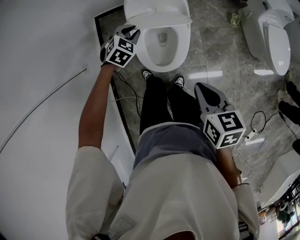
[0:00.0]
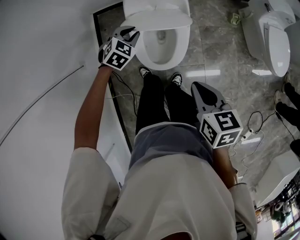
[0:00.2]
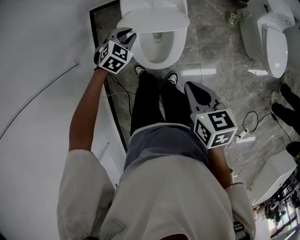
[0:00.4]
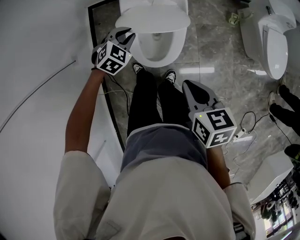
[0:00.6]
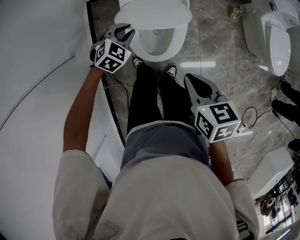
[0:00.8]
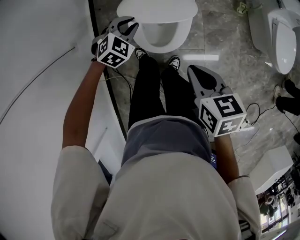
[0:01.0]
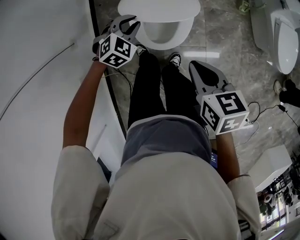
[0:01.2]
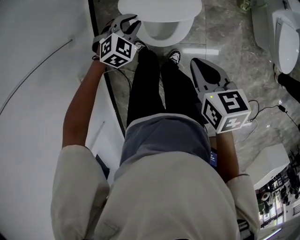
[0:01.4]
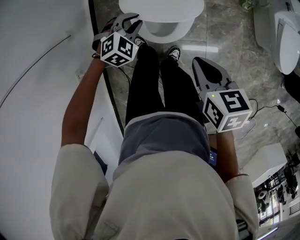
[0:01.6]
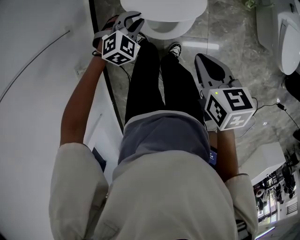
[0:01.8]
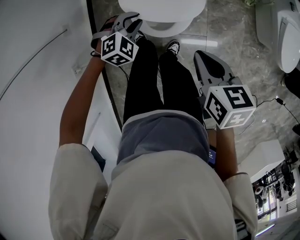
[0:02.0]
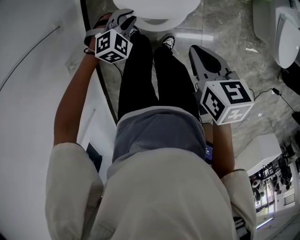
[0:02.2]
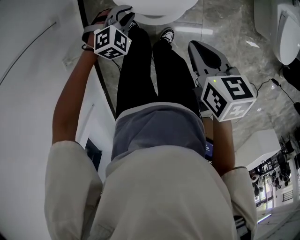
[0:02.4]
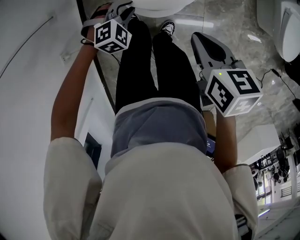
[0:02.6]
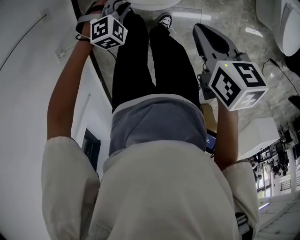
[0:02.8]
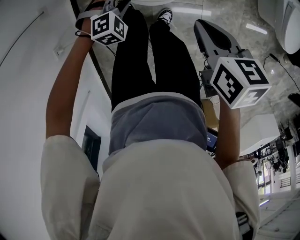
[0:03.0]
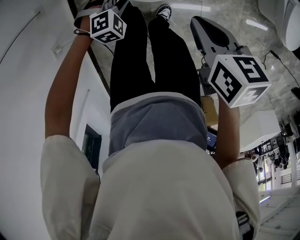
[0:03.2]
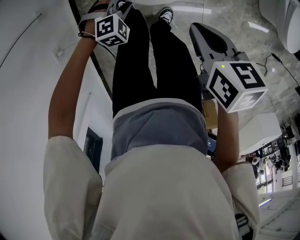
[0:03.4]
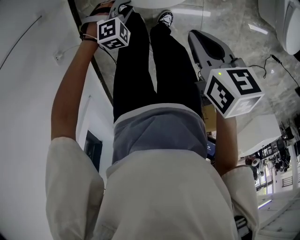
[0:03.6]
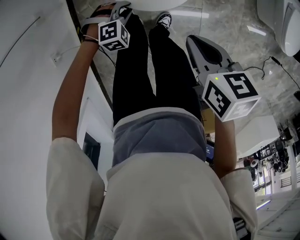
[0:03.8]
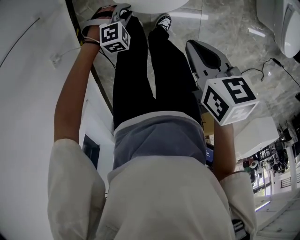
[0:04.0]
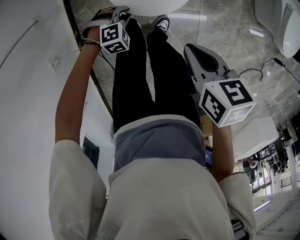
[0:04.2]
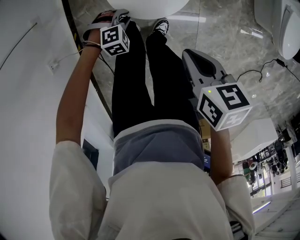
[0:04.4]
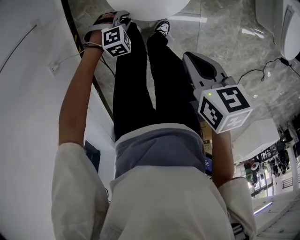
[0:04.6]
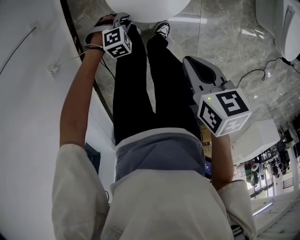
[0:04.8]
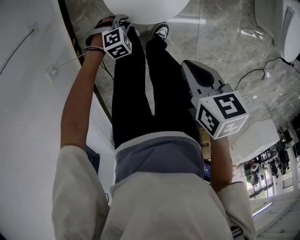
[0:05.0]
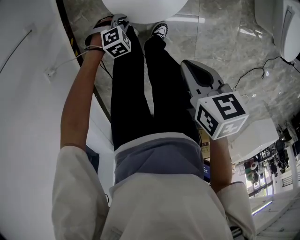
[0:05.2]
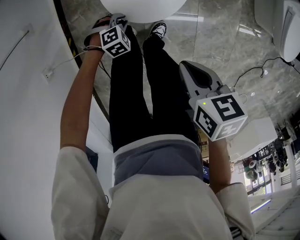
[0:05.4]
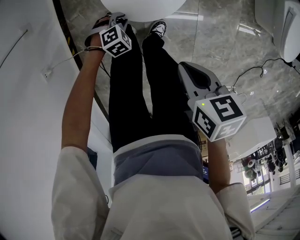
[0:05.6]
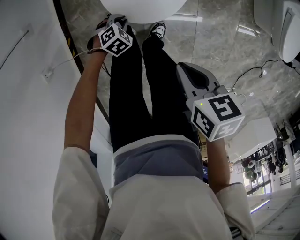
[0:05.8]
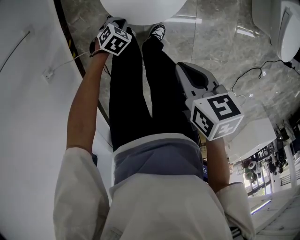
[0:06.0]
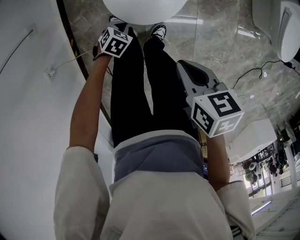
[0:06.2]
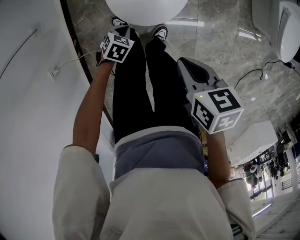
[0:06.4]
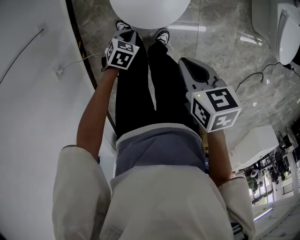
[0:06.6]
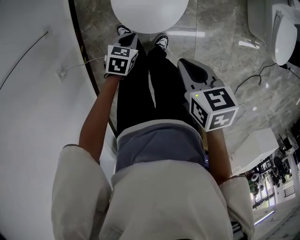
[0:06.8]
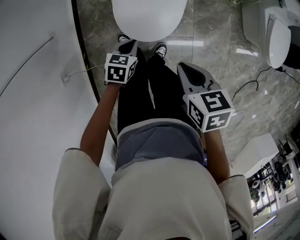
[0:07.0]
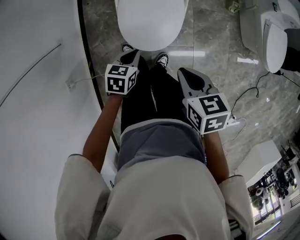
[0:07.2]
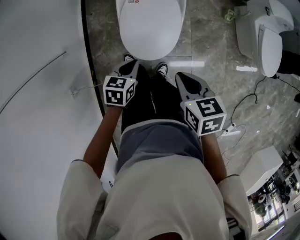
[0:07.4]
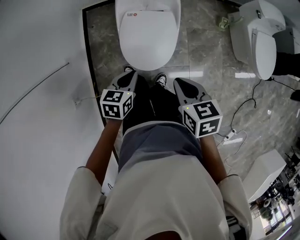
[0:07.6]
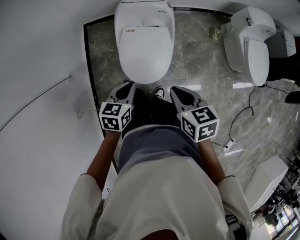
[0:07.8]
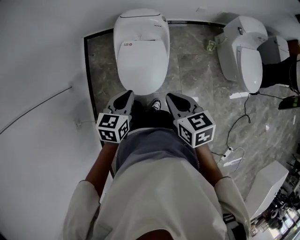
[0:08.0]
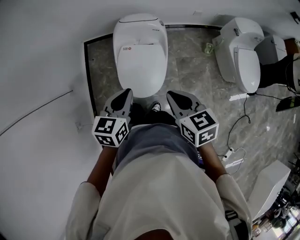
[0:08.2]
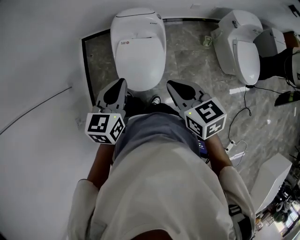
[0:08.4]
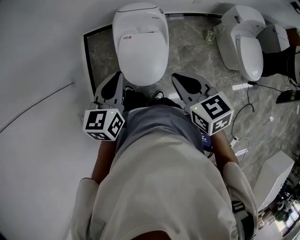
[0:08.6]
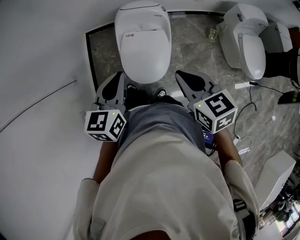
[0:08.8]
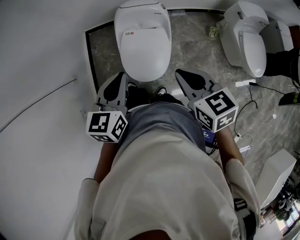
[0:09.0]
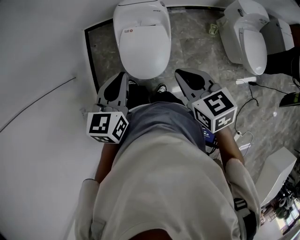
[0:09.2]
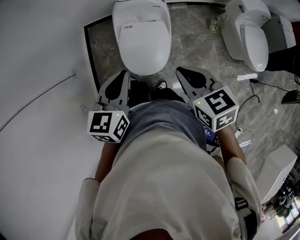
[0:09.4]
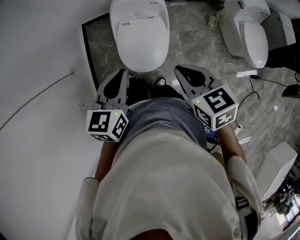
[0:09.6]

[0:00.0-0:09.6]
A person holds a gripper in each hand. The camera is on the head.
0:00.0 to 0:01.6: The right gripper shifts about 5 cm downward; the left gripper goes some 10 cm backward and downward.
0:01.6 to 0:03.2: The right gripper travels downward by roughly 5 cm; the left gripper is displaced downward and backward by roughly 15 cm.
0:03.2 to 0:04.8: The right gripper is displaced downward by approximately 5 cm, while the left gripper is displaced downward by roughly 15 cm.
0:04.8 to 0:06.4: The left gripper twists approximately 50 degrees counterclockwise, seen from behind.
0:06.4 to 0:08.0: The left gripper goes some 40 cm upward, and tips its fingers upward by some 30 degrees. Meanwhile the right gripper is displaced upward by approximately 20 cm, and turns by roughly 20 degrees.
0:08.0 to 0:09.6: The right gripper moves upward, about 5 cm; the left gripper heads upward, covering about 10 cm.

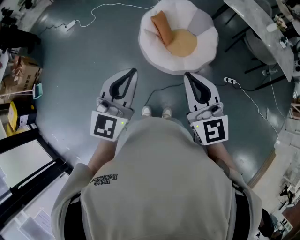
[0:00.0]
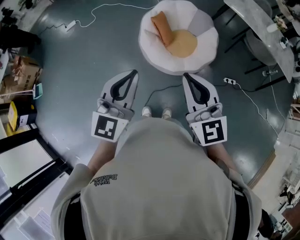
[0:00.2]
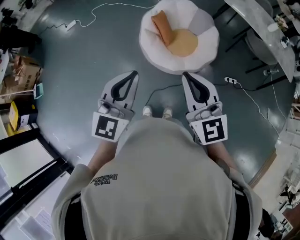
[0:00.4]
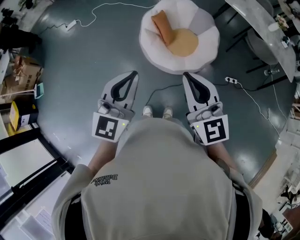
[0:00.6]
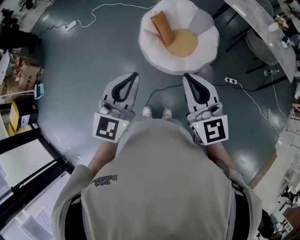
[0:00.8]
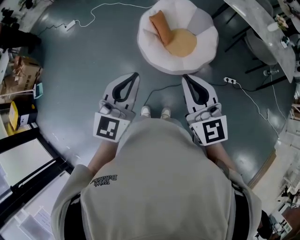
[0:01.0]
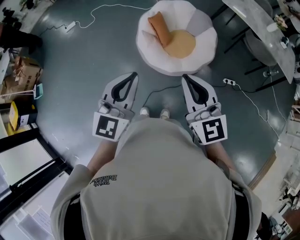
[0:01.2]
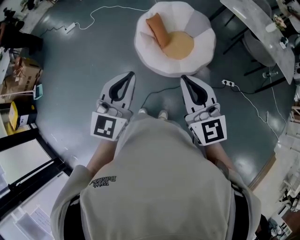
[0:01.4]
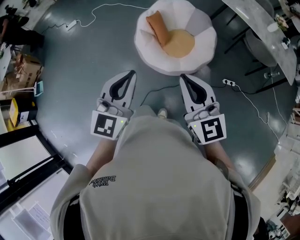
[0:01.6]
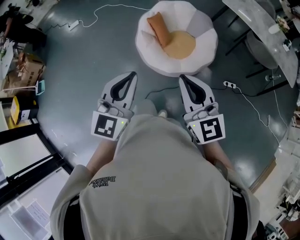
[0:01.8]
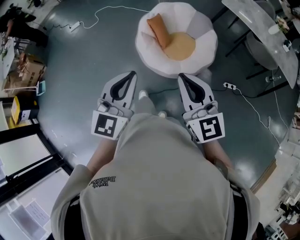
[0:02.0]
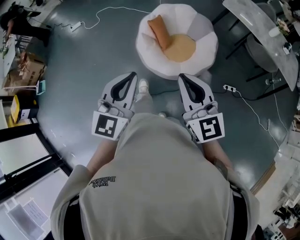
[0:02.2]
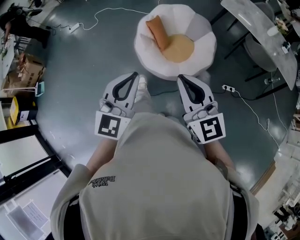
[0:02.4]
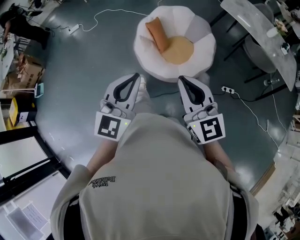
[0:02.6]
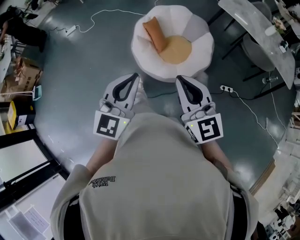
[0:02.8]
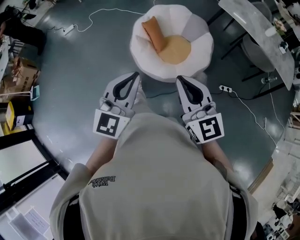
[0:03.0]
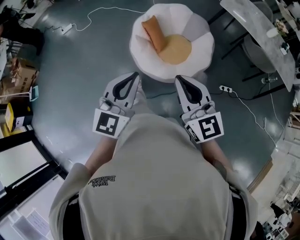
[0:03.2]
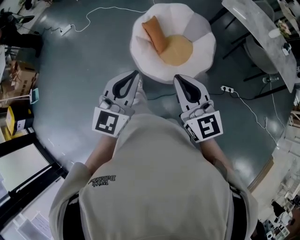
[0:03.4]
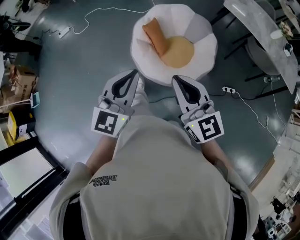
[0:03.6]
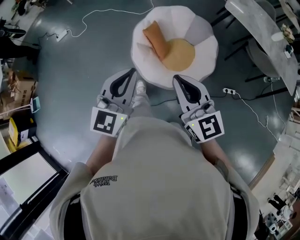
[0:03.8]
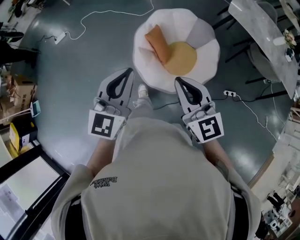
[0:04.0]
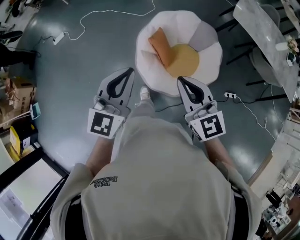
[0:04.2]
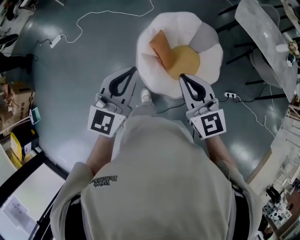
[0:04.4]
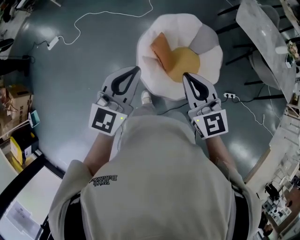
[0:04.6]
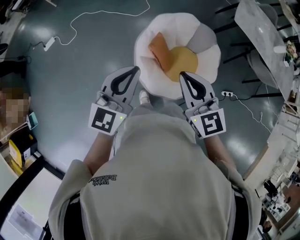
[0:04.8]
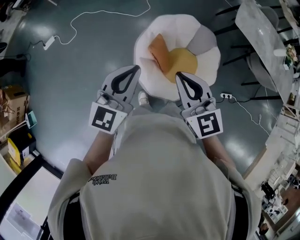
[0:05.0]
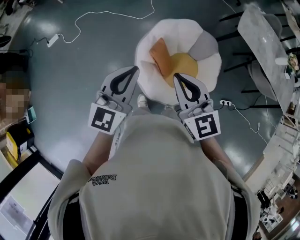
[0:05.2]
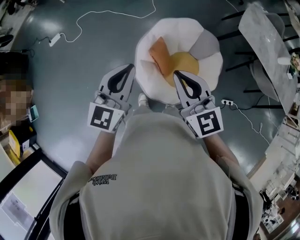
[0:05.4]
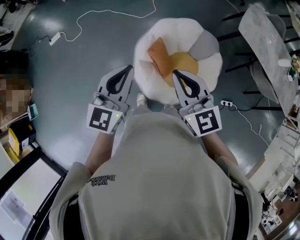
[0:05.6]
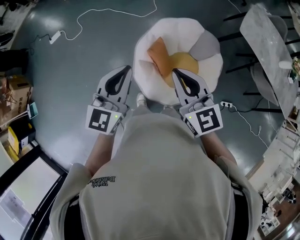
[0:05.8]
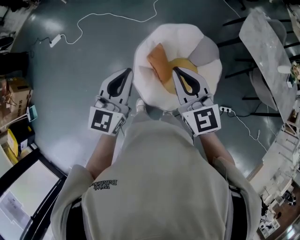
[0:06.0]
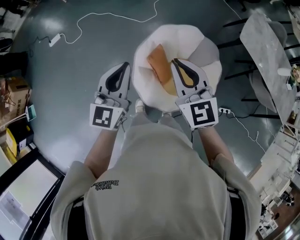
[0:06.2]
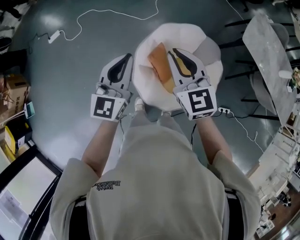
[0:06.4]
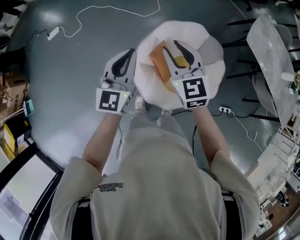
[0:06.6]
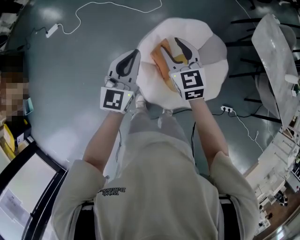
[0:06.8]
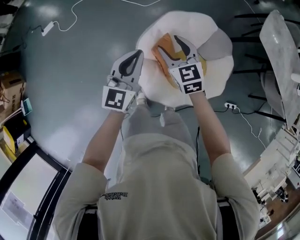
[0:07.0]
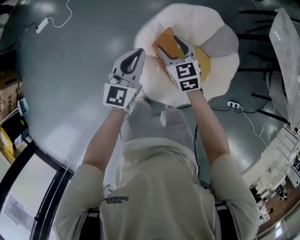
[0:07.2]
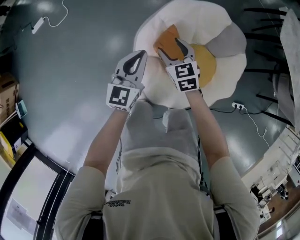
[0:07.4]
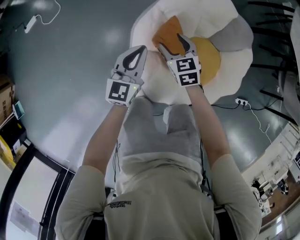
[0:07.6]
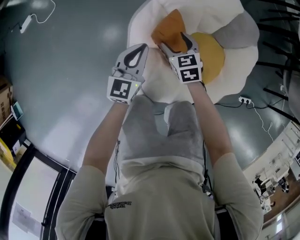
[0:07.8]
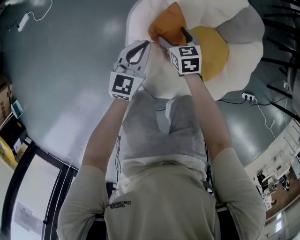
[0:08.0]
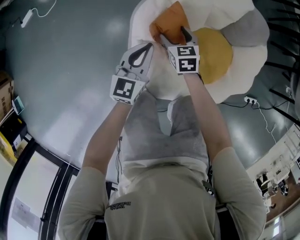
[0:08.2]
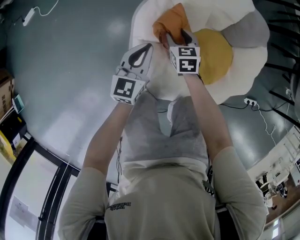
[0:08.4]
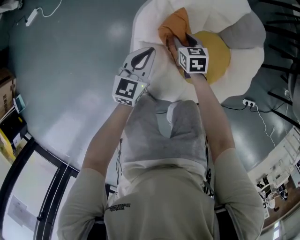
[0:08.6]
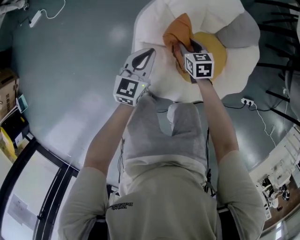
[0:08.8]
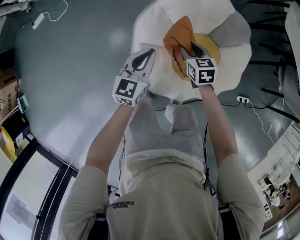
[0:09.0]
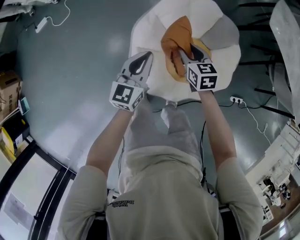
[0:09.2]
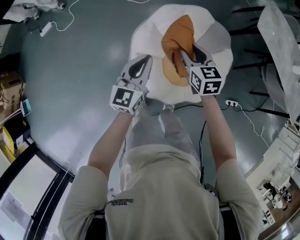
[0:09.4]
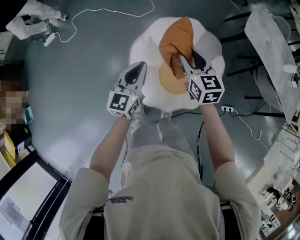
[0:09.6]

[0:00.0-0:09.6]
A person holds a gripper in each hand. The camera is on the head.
0:00.0 to 0:01.6: The two grippers go some 10 cm to the right.
0:01.6 to 0:03.2: Both grippers travel together forward, about 5 cm.
0:03.2 to 0:04.8: The pair of grippers is taken forward and to the left, some 40 cm.
0:04.8 to 0:06.4: The two grippers go roughly 15 cm forward.
0:06.4 to 0:08.0: The grippers both shift downward by roughly 60 cm. The right gripper rotates roughly 40 degrees, and opens. Meanwhile the left gripper turns by some 20 degrees.
0:08.0 to 0:09.6: The grippers both shift upward by some 40 cm. The right gripper changes its angle by about 20 degrees, and closes up.

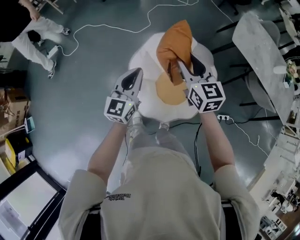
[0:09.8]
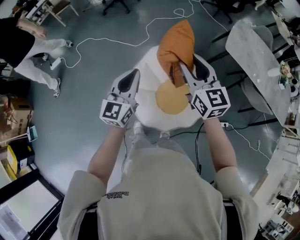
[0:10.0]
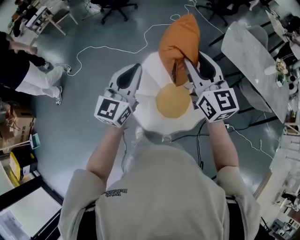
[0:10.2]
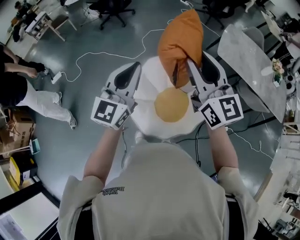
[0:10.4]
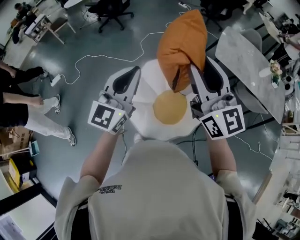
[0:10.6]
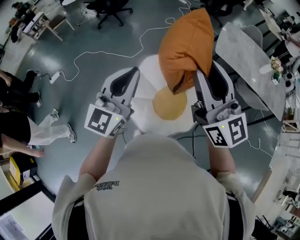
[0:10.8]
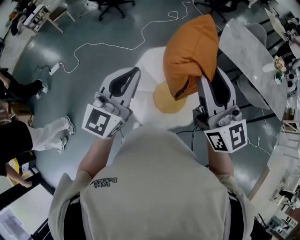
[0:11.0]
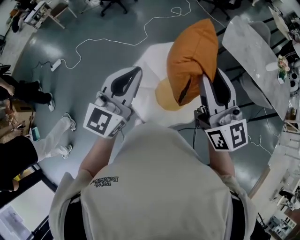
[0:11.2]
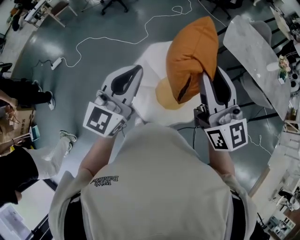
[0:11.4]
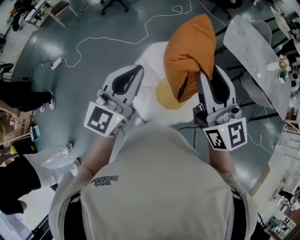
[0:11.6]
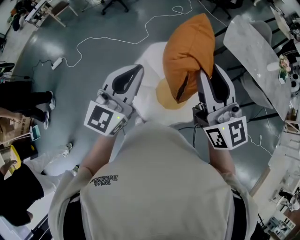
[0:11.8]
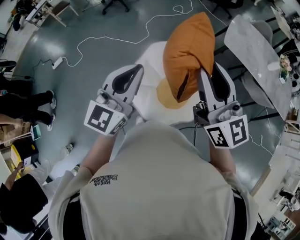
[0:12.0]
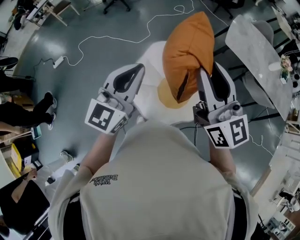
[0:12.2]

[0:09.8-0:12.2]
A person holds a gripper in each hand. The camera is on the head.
0:09.8 to 0:11.0: The left gripper is displaced upward by approximately 20 cm. Meanwhile the right gripper shifts some 25 cm upward and backward, and rotates approximately 30 degrees.
0:11.0 to 0:12.2: The grippers make only small movements.

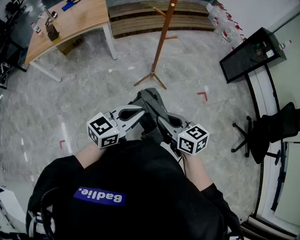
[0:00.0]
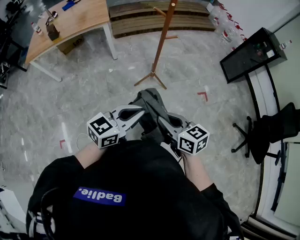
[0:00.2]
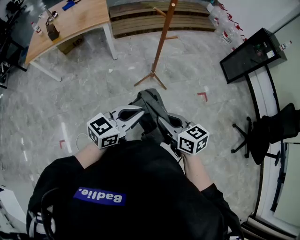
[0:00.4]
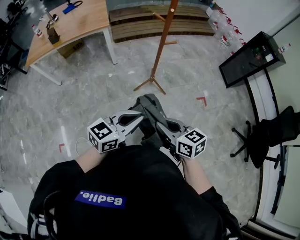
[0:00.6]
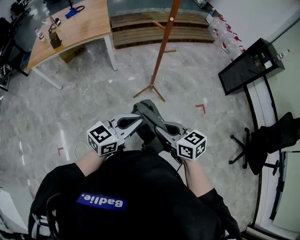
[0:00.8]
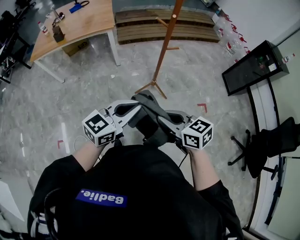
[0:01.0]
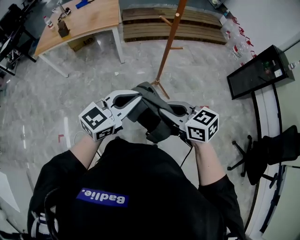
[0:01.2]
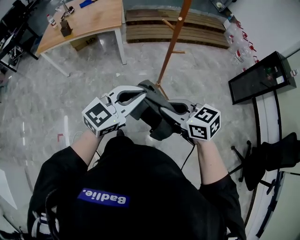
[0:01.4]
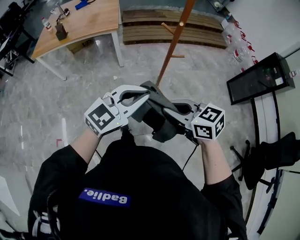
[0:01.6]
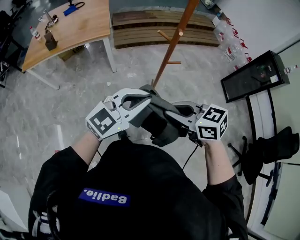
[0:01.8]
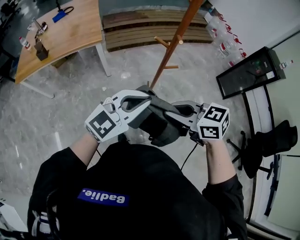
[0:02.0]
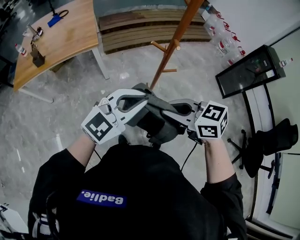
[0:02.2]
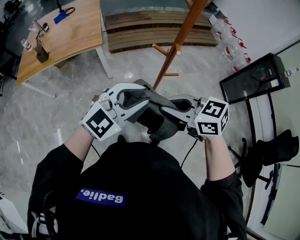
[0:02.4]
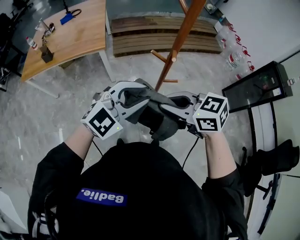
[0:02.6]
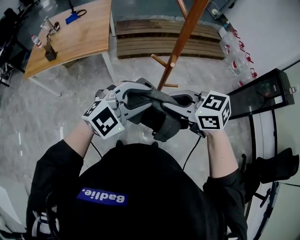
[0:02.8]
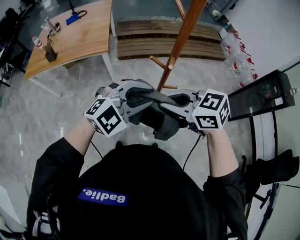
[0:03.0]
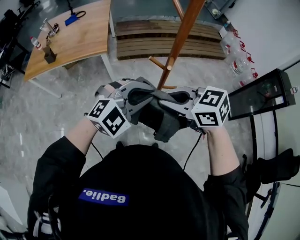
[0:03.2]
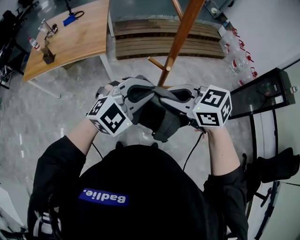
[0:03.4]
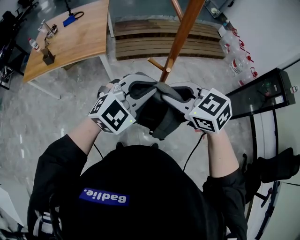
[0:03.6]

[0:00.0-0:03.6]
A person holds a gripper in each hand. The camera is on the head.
0:00.0 to 0:01.8: The right gripper ends up about 20 cm from where it was, and turns by some 30 degrees, while the left gripper moves roughly 20 cm, and rotates roughly 30 degrees.
0:01.8 to 0:03.6: The left gripper shifts by some 20 cm, and rotates some 30 degrees; the right gripper shifts by some 20 cm, and rotates about 20 degrees.
